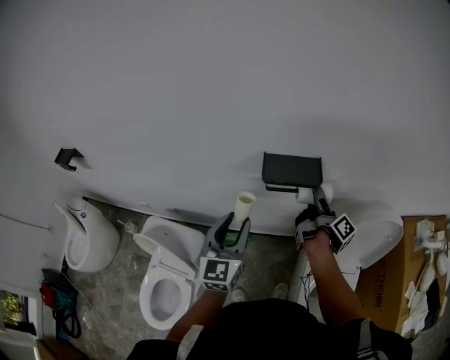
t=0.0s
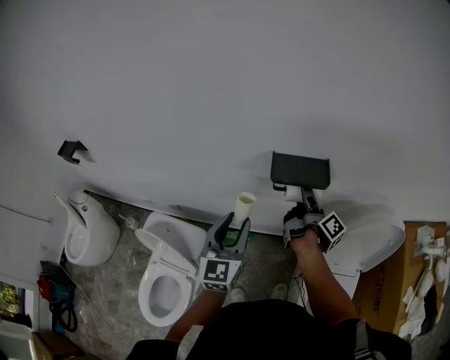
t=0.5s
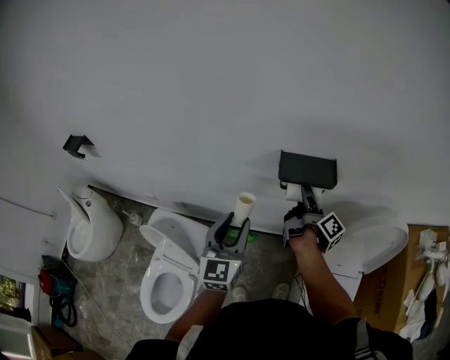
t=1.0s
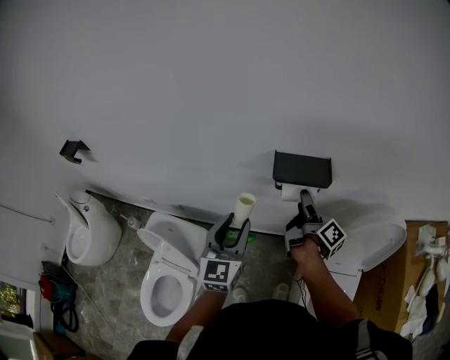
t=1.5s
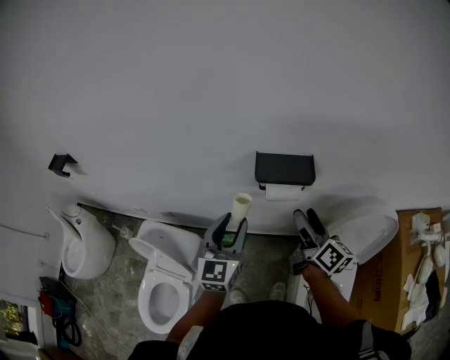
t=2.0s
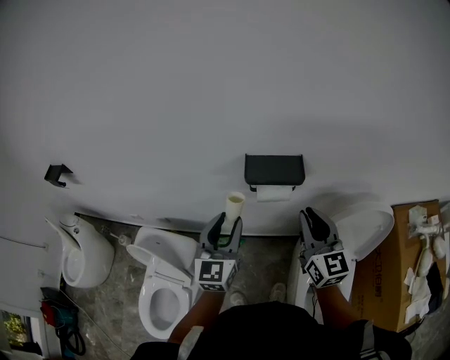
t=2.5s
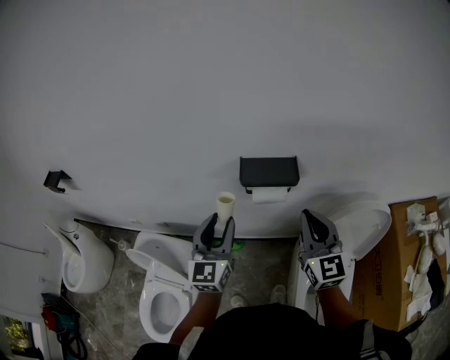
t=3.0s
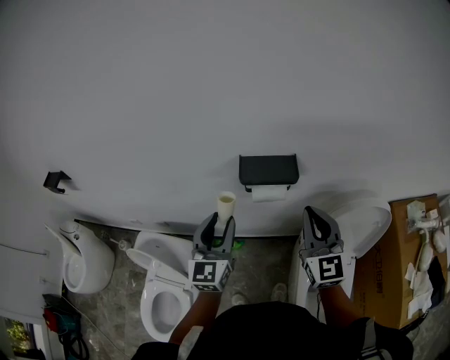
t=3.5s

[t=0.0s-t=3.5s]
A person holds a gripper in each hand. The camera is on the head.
t=0.0s to t=2.0s: The right gripper shifts roughly 10 cm backward, and rolls counterclockwise, seen from behind, by roughly 40 degrees.
t=2.0s to t=3.5s: The right gripper shifts approximately 5 cm upward, rolls counterclockwise, seen from behind, by roughly 60 degrees, and closes.

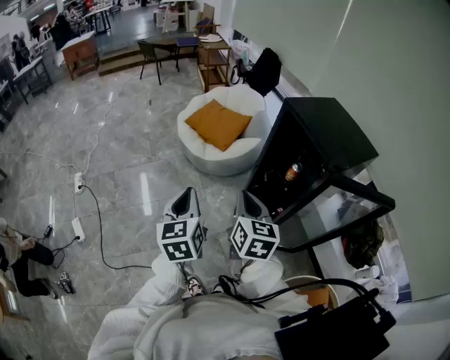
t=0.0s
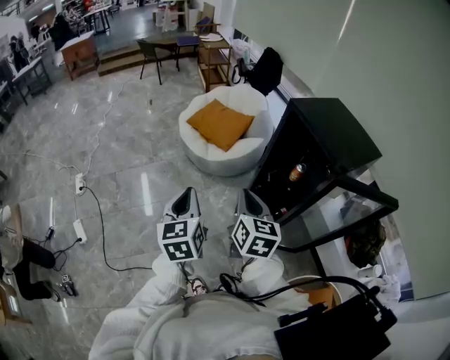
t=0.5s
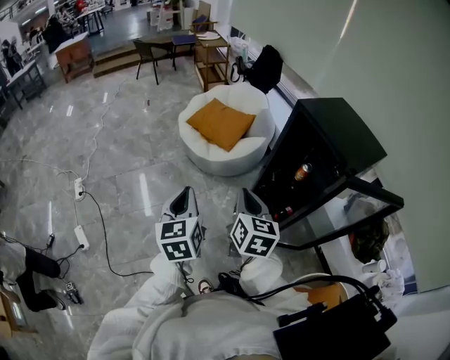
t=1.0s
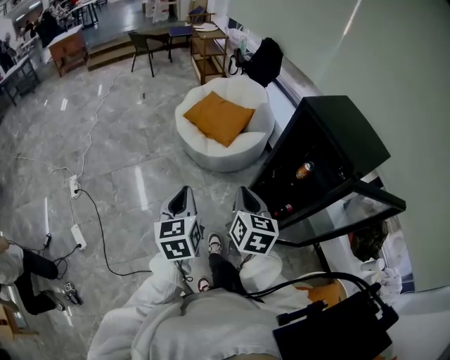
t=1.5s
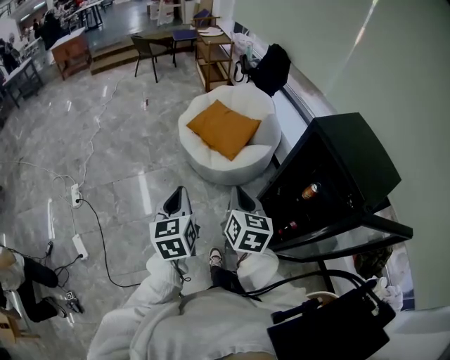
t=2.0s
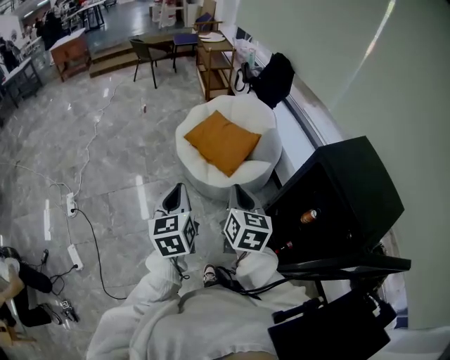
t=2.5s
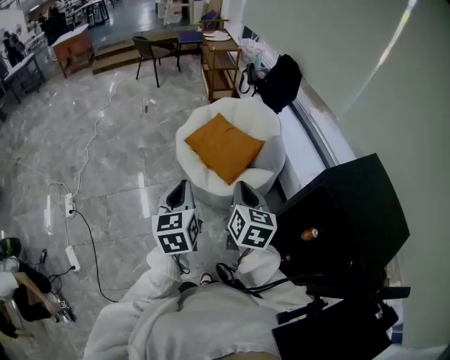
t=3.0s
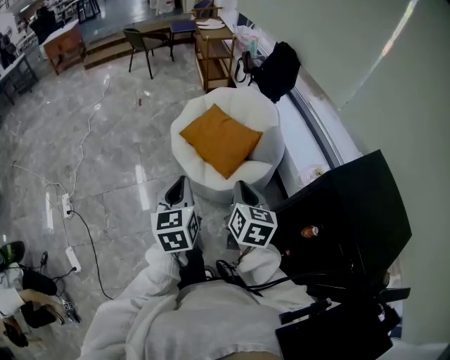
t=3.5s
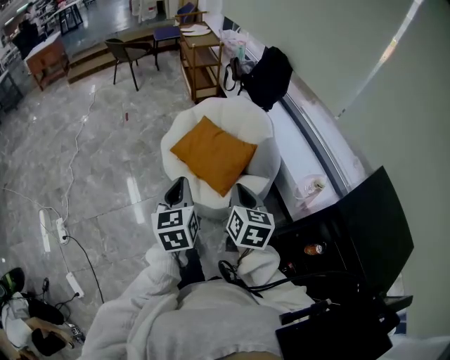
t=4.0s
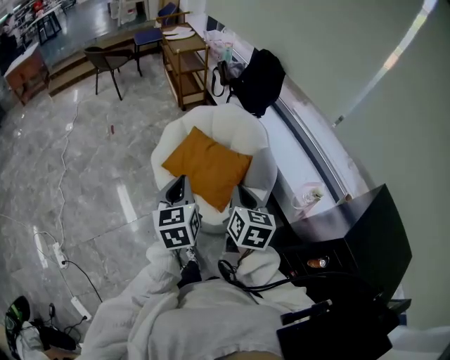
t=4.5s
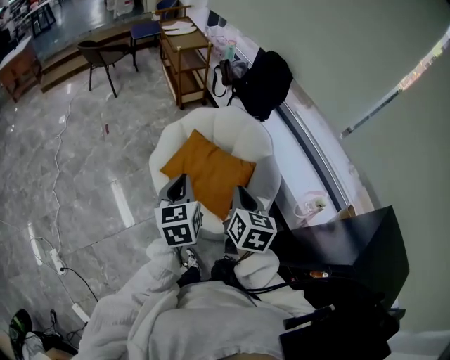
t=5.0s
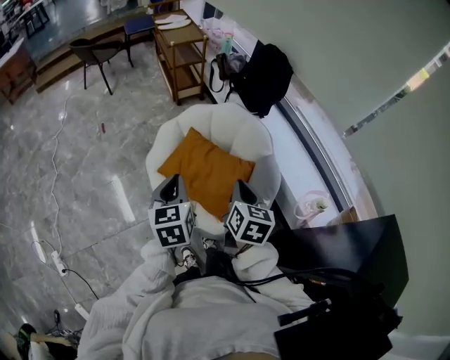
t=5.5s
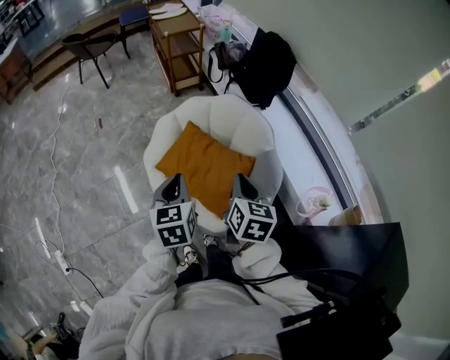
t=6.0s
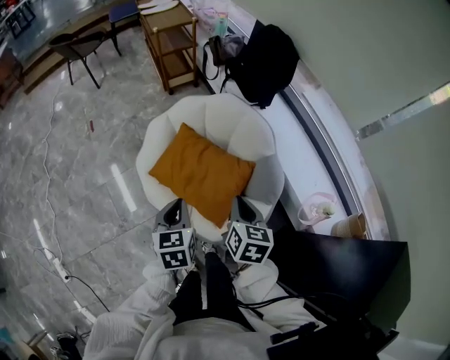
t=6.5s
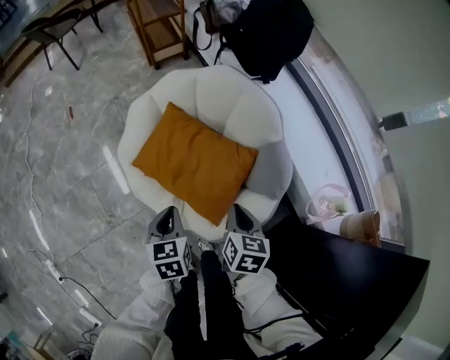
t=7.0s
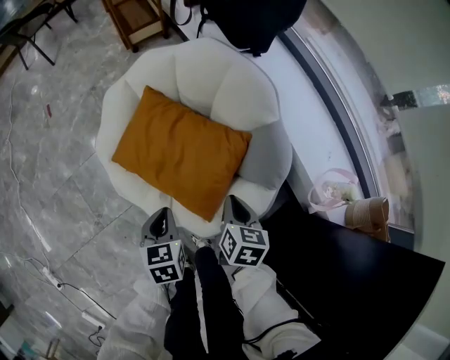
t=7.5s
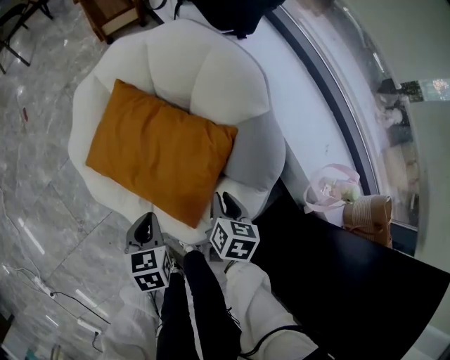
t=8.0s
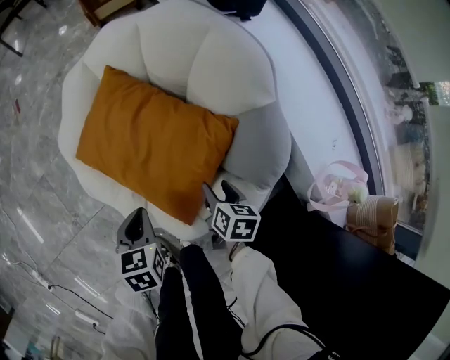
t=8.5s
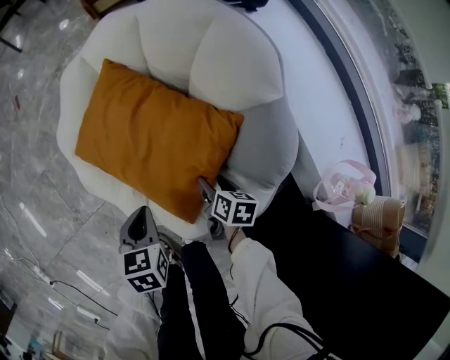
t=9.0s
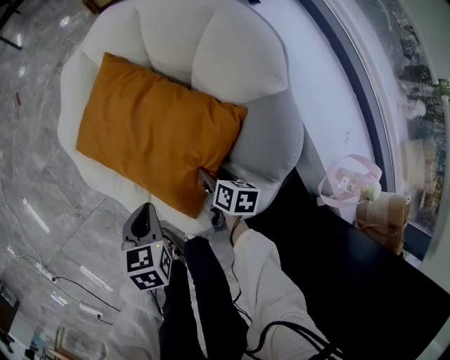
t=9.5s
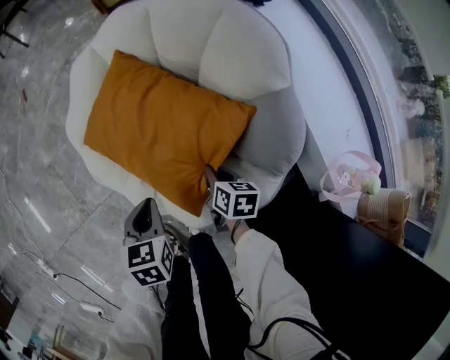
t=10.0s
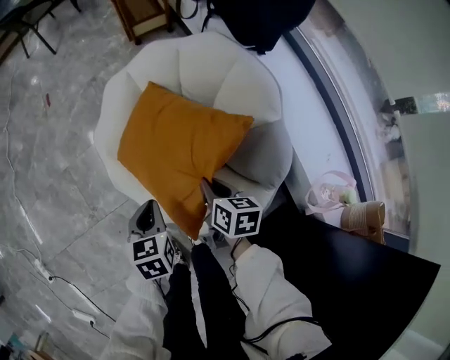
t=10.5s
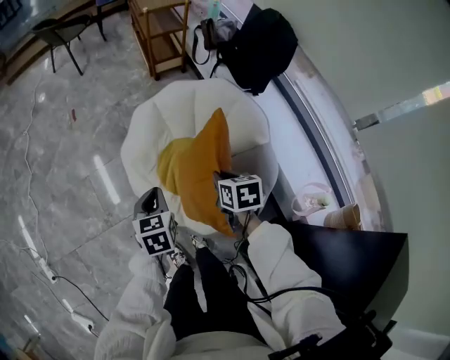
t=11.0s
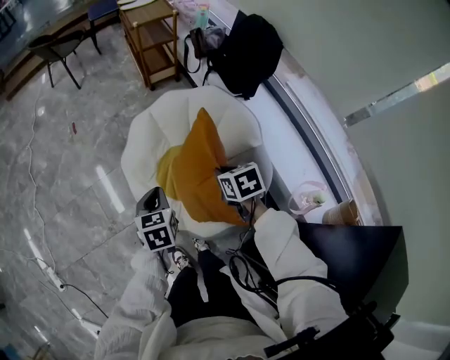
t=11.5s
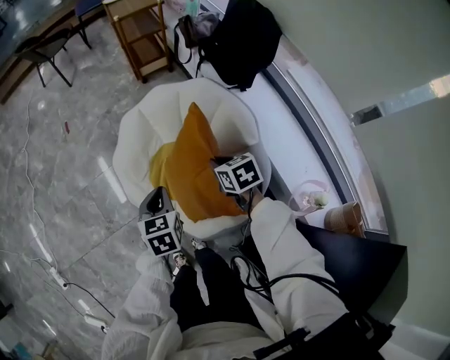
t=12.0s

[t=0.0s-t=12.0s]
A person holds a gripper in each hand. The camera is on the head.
t=0.0s to t=2.0s: Both grippers move forward and to the left, some 20 cm.
t=2.0s to t=4.0s: Both grippers travel together forward, roughly 35 cm.
t=4.0s to t=6.0s: The grippers both shift forward by some 30 cm.
t=6.0s to t=8.0s: Both grippers travel together downward, some 40 cm. The left gripper swivels roughly 30 degrees; the right gripper turns by some 30 degrees.
t=8.0s to t=10.0s: The right gripper shifts some 10 cm downward, and opens, then closes again.
t=10.0s to t=12.0s: The grippers both shift upward by approximately 30 cm. The right gripper turns by about 40 degrees.

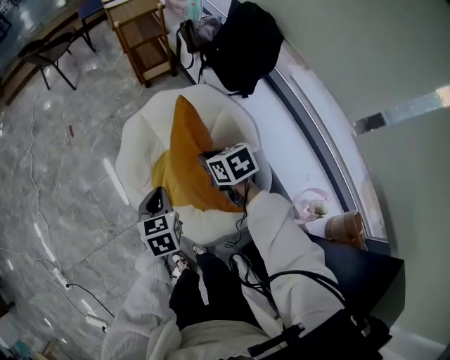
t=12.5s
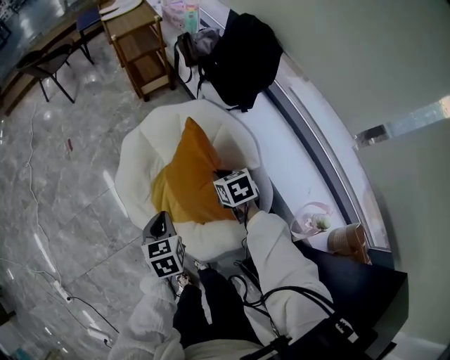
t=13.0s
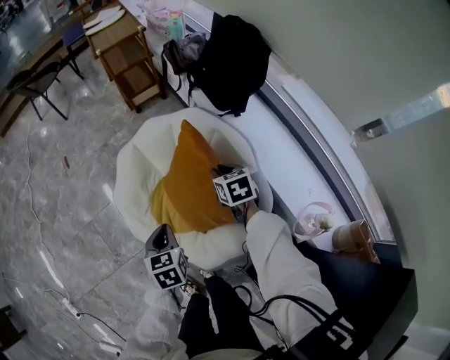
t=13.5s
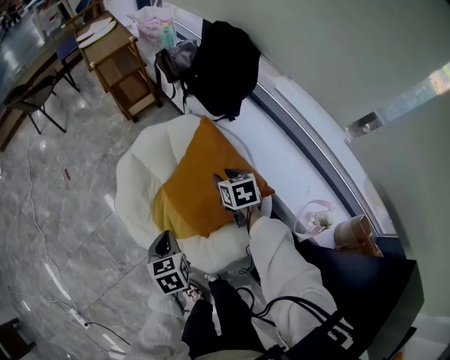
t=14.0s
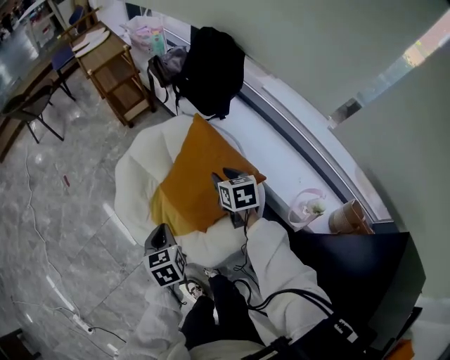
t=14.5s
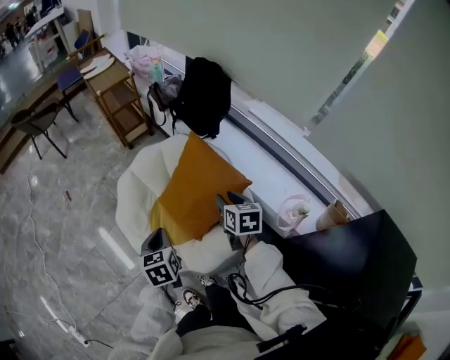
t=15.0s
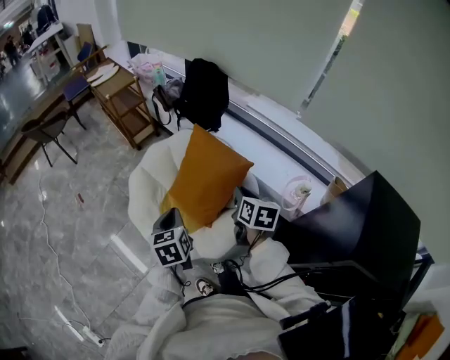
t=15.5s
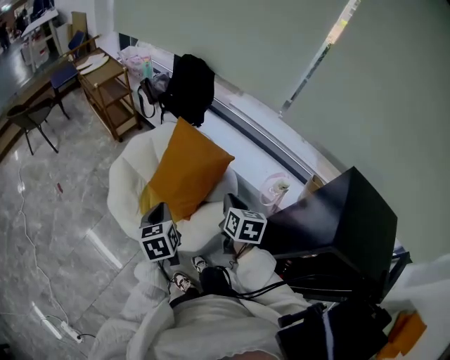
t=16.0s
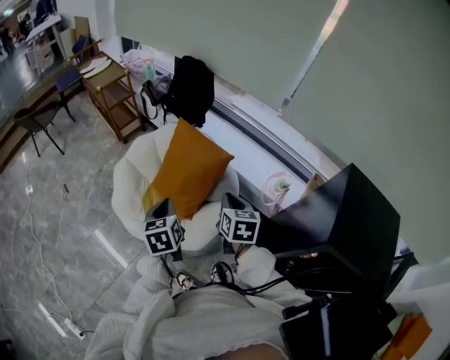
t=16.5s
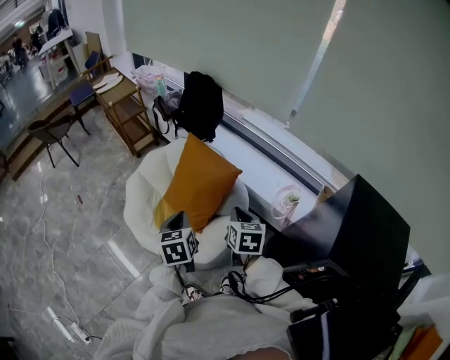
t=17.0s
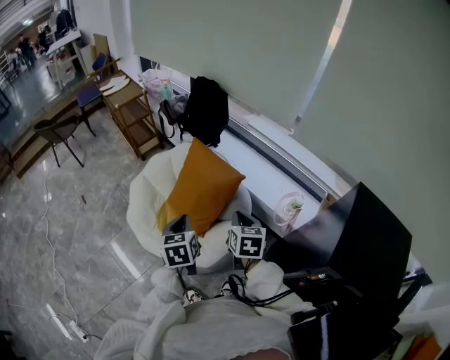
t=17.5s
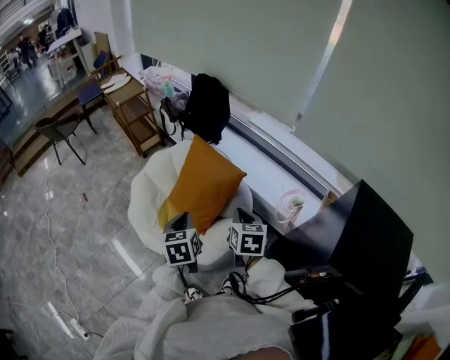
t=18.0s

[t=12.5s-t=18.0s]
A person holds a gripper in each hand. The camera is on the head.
t=12.5s to t=14.5s: The right gripper moves roughly 10 cm, swivels roughly 30 degrees, and opens up.
t=14.5s to t=16.0s: The right gripper heads backward and upward, covering roughly 30 cm, rotates about 30 degrees, and closes. The left gripper is displaced upward and backward by about 20 cm.
t=16.0s to t=18.0s: The left gripper moves to the right, about 10 cm.

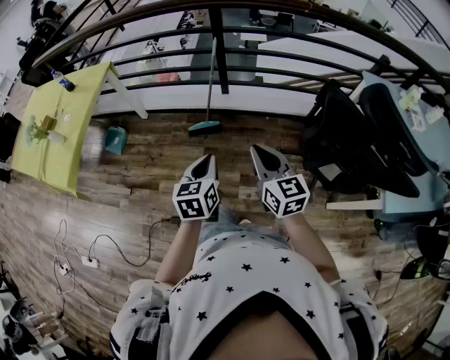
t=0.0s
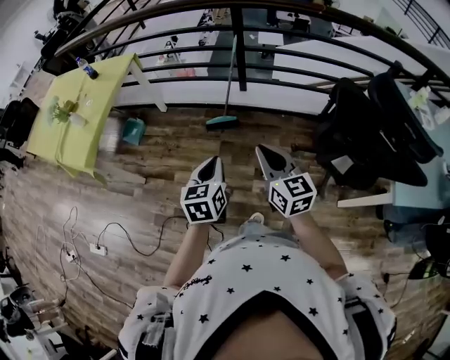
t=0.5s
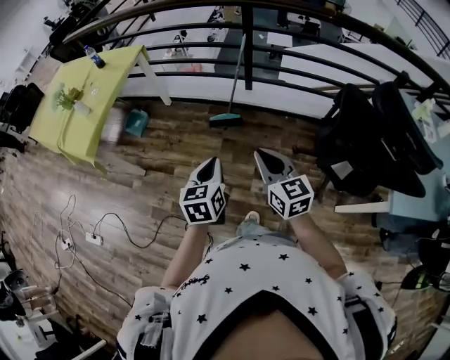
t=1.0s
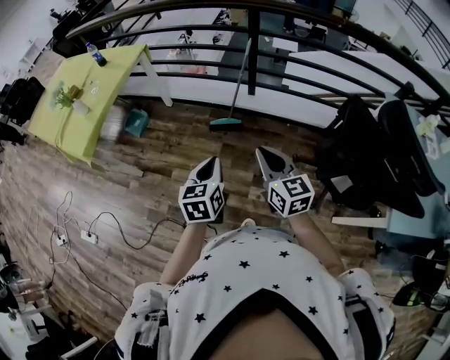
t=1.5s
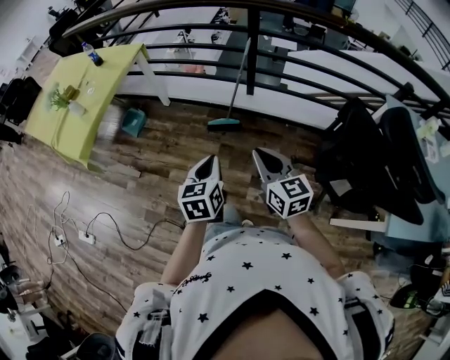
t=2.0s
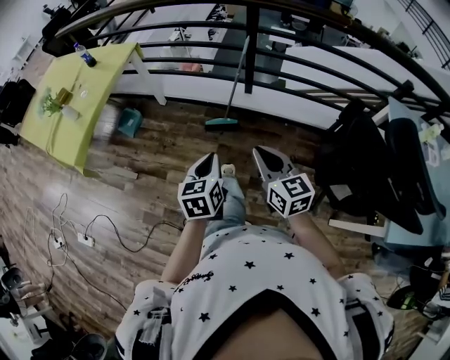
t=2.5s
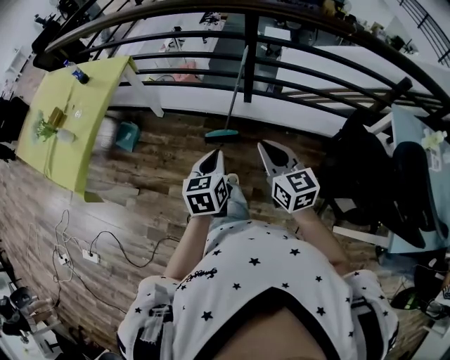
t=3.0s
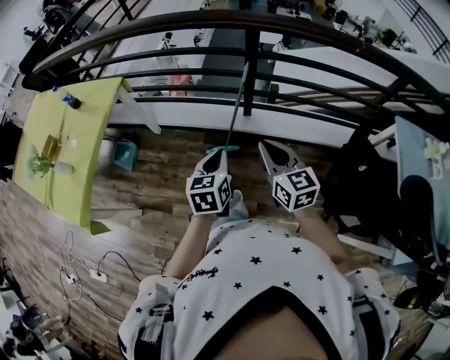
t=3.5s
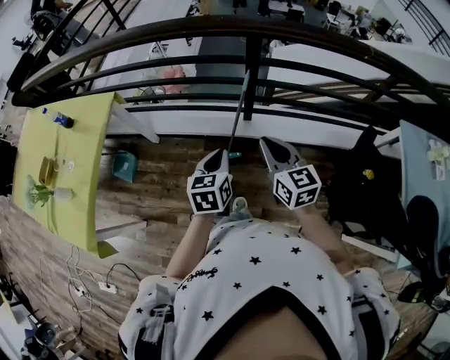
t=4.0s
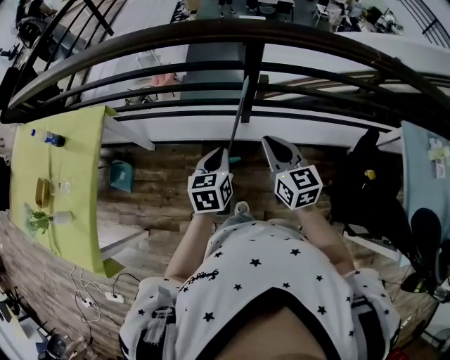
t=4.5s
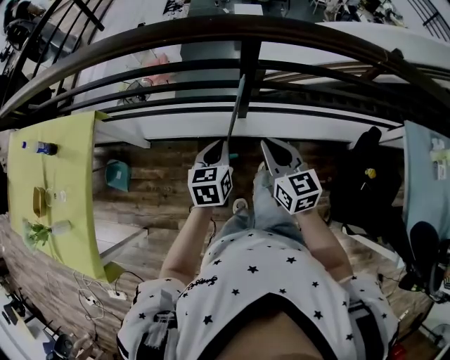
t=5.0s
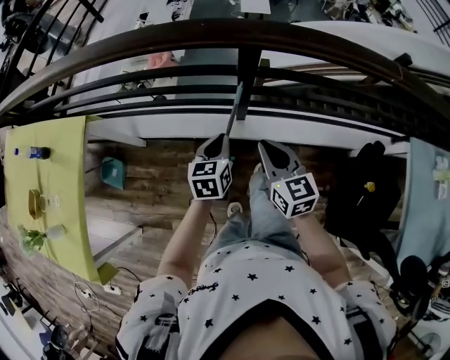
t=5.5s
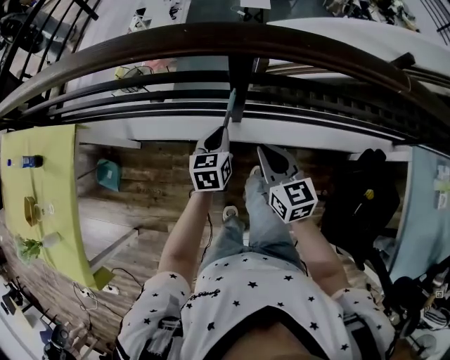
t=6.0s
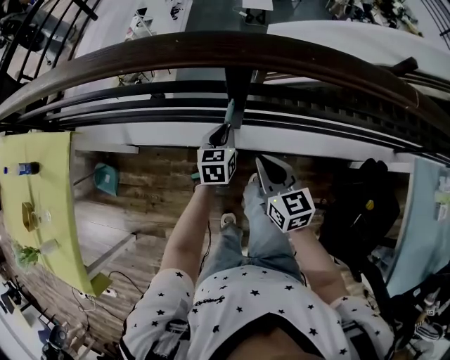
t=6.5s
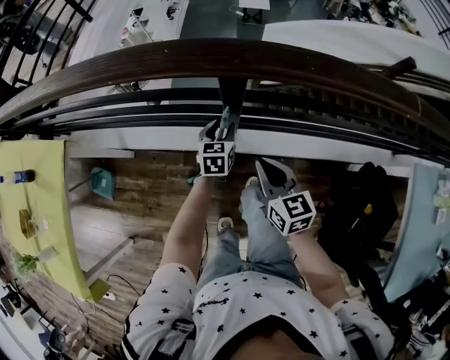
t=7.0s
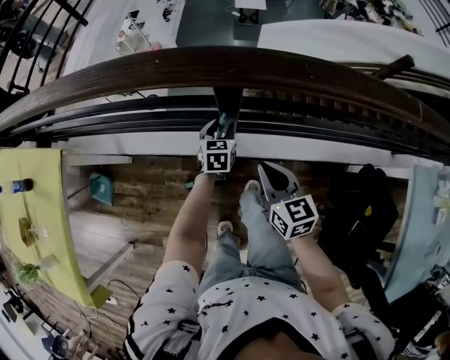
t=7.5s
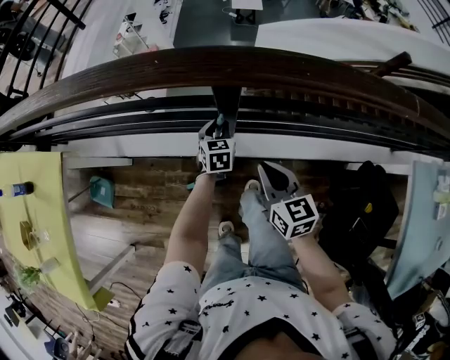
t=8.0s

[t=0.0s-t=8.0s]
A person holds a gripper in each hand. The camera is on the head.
t=0.0s to t=2.0s: The grippers both shift to the left by roughly 5 cm. The left gripper reaches approximately 10 cm backward, then returns; the right gripper reaches roughly 10 cm backward, then returns.
t=2.0s to t=4.0s: The grippers both shift forward by approximately 40 cm.
t=4.0s to t=6.0s: The grippers both shift forward and downward by some 30 cm.
t=6.0s to t=8.0s: The right gripper goes approximately 5 cm forward; the left gripper shifts about 20 cm forward and downward, and opens its fingers.
